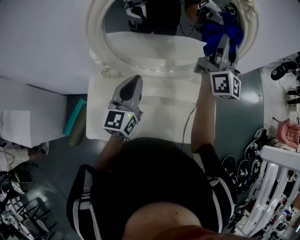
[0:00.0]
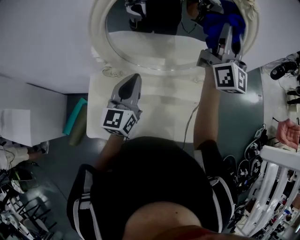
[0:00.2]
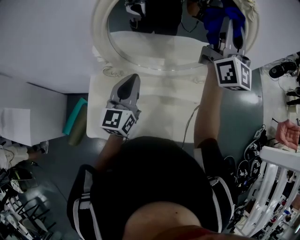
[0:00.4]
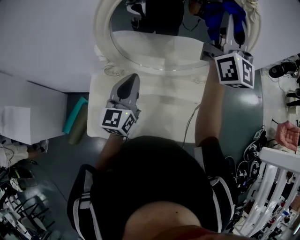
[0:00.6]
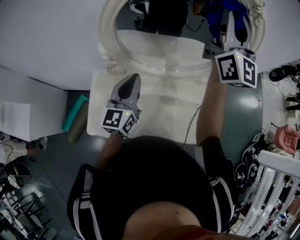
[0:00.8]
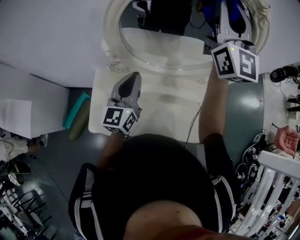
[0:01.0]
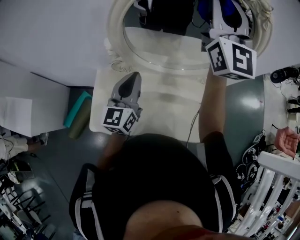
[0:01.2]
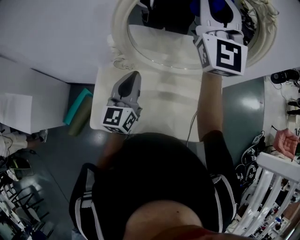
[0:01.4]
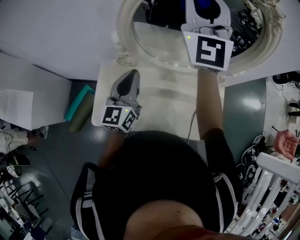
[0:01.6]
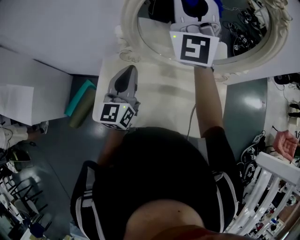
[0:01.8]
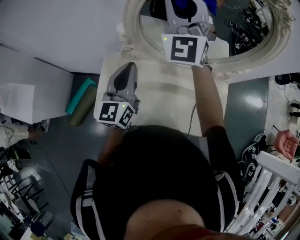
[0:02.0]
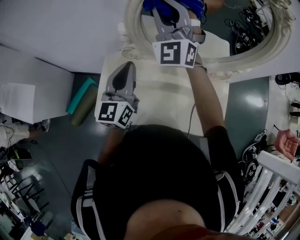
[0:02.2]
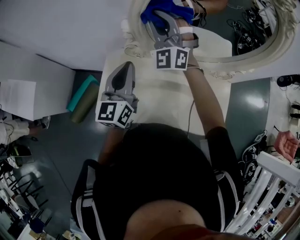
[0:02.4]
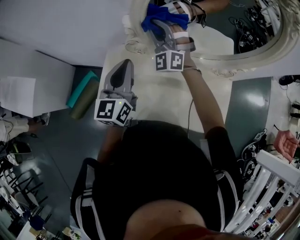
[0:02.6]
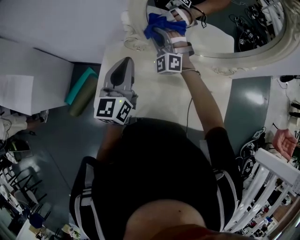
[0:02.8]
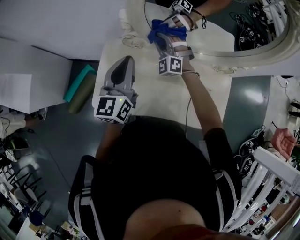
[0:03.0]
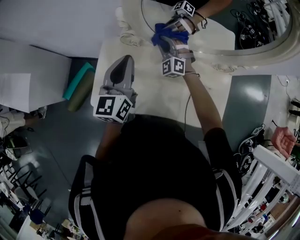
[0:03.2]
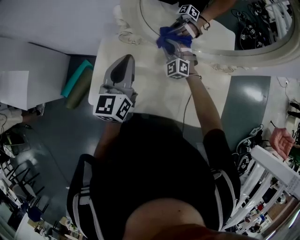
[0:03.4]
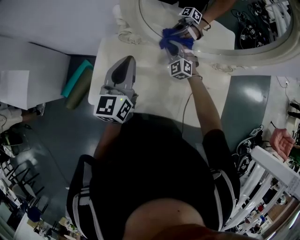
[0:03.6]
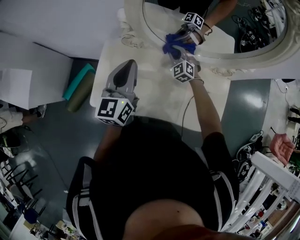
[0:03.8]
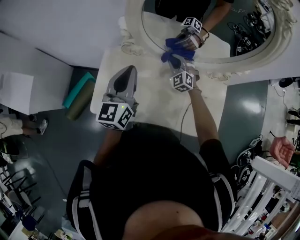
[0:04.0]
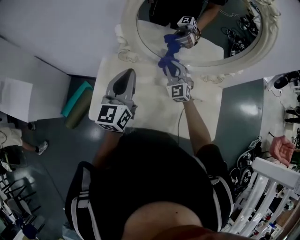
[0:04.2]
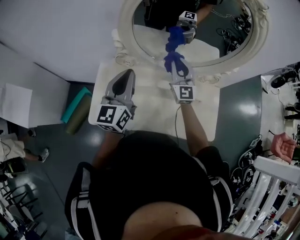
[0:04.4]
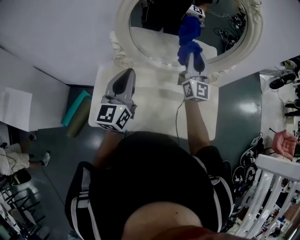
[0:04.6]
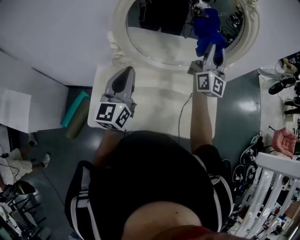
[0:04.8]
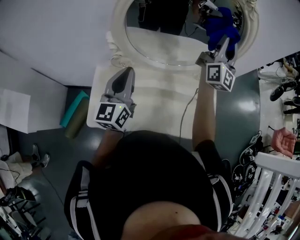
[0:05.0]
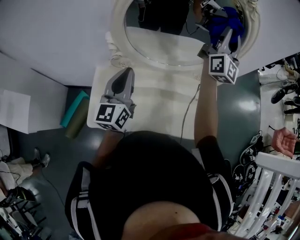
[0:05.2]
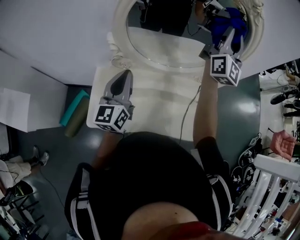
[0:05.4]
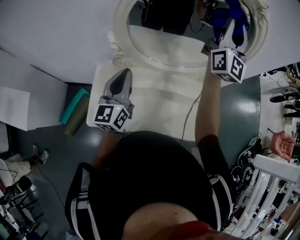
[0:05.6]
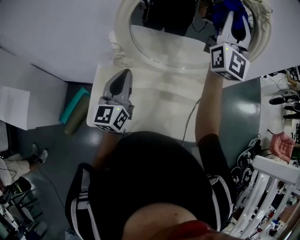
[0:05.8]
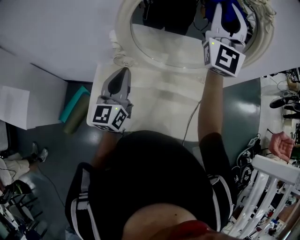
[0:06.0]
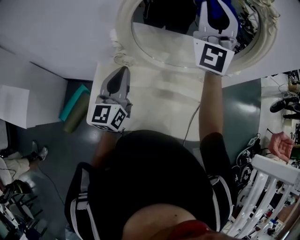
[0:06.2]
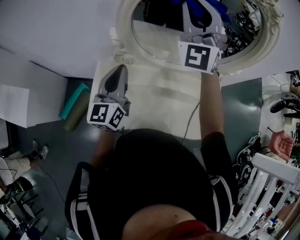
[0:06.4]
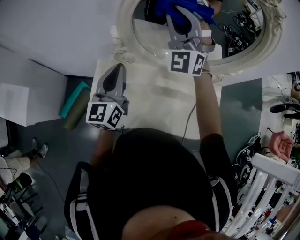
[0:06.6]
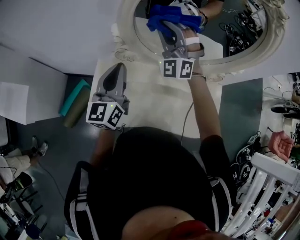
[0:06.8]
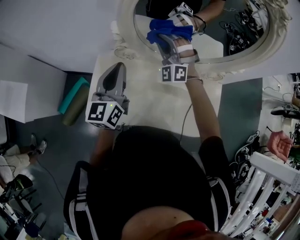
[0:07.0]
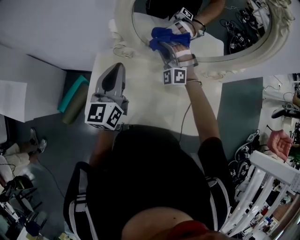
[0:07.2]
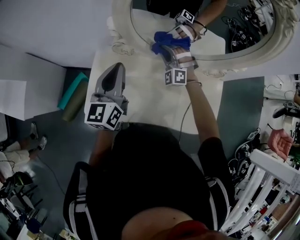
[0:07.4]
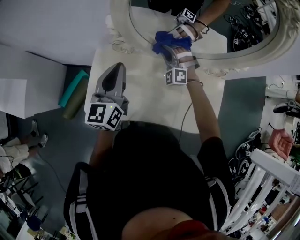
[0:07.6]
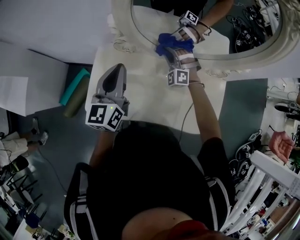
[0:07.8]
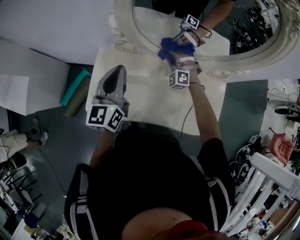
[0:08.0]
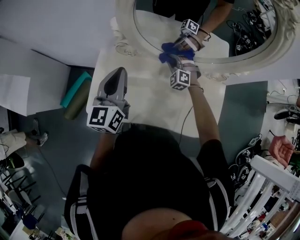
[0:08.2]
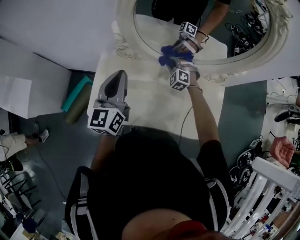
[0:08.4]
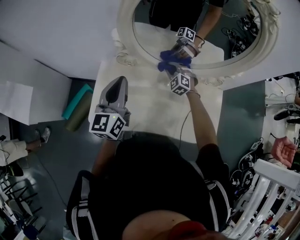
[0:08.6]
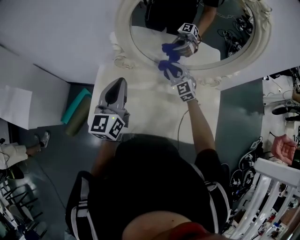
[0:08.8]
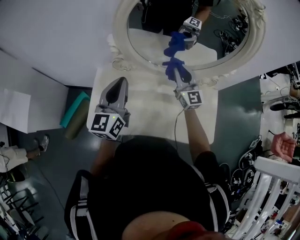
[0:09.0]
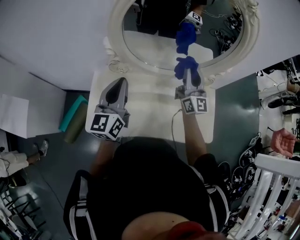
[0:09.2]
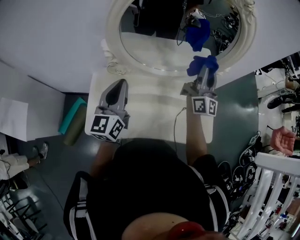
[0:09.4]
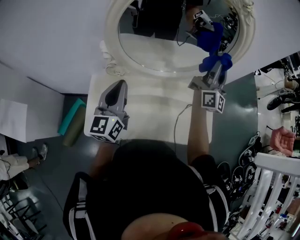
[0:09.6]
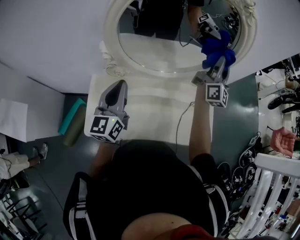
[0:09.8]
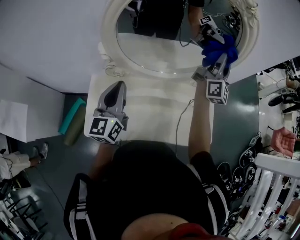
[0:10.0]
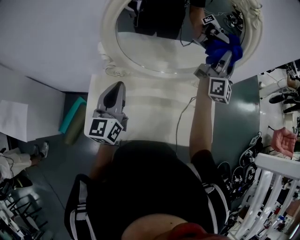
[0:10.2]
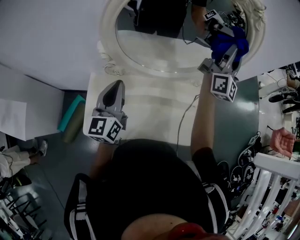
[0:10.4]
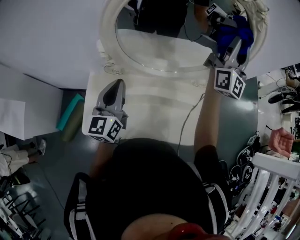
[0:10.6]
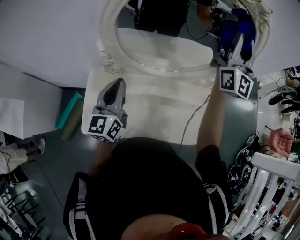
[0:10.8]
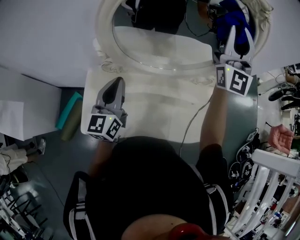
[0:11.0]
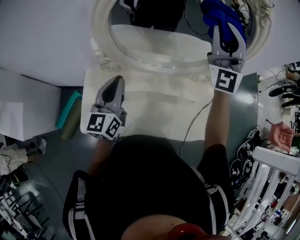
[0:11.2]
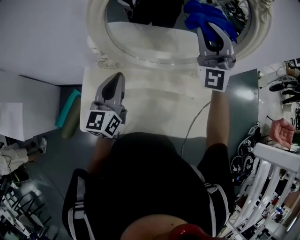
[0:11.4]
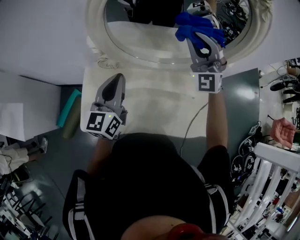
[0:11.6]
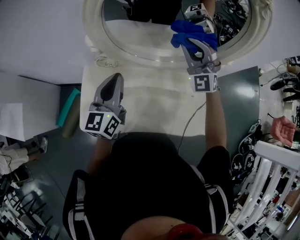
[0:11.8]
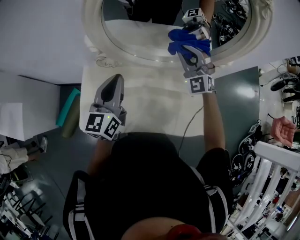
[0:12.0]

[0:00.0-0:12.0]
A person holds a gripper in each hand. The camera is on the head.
0:00.0 to 0:01.6: The left gripper is displaced to the left by some 10 cm. Meanwhile the right gripper is displaced to the left by about 25 cm, and twists some 40 degrees counterclockwise, seen from behind.
0:01.6 to 0:03.0: The right gripper is displaced downward by approximately 40 cm, and tilts its fingers roughly 40 degrees downward; the left gripper moves approximately 5 cm.
0:03.0 to 0:04.4: The right gripper goes approximately 15 cm to the right, upward and backward, and twists some 50 degrees clockwise, seen from behind.
0:04.4 to 0:06.0: The right gripper heads upward, covering some 30 cm, and swivels about 30 degrees.
0:06.0 to 0:07.6: The right gripper shifts some 40 cm downward, and points its fingers about 50 degrees further downward.
0:07.6 to 0:09.0: The right gripper shifts roughly 15 cm upward, to the right and backward, and twists approximately 70 degrees clockwise, seen from behind.
0:09.0 to 0:10.4: The right gripper goes some 30 cm upward and to the right, and tips its fingers upward by approximately 30 degrees.
0:10.4 to 0:12.0: The right gripper moves downward and to the left, some 25 cm, and tilts its fingers approximately 40 degrees downward.

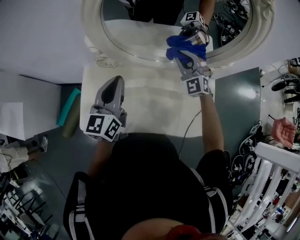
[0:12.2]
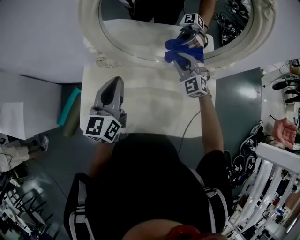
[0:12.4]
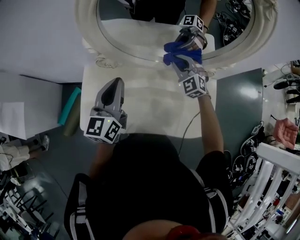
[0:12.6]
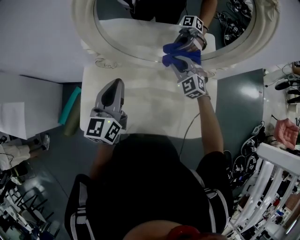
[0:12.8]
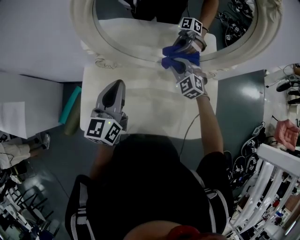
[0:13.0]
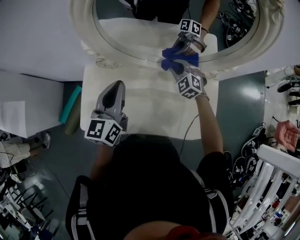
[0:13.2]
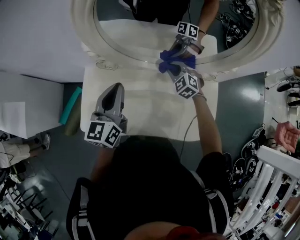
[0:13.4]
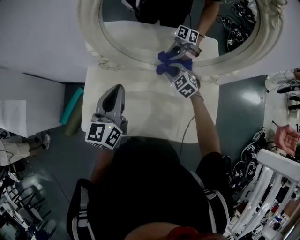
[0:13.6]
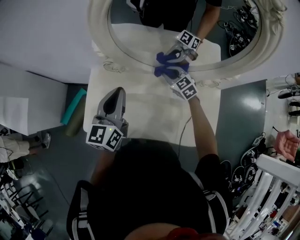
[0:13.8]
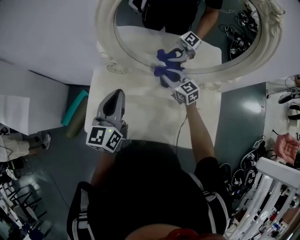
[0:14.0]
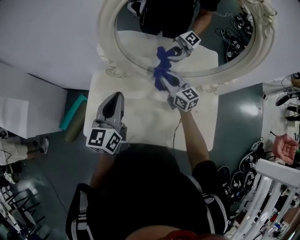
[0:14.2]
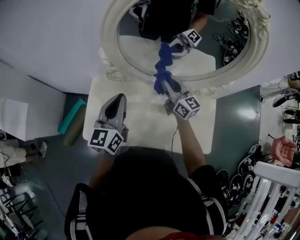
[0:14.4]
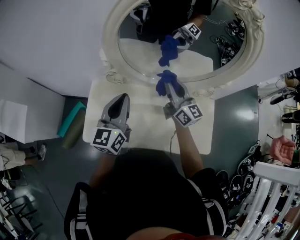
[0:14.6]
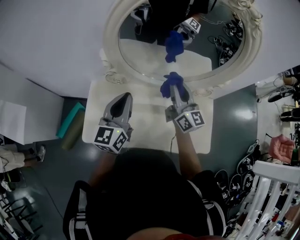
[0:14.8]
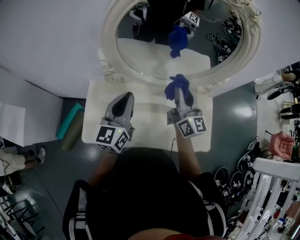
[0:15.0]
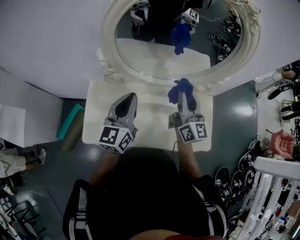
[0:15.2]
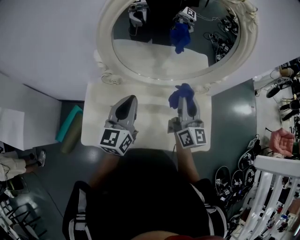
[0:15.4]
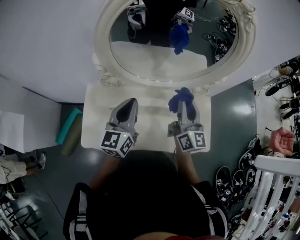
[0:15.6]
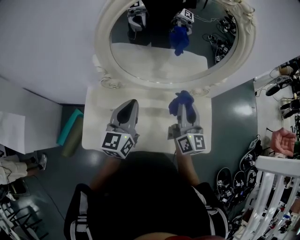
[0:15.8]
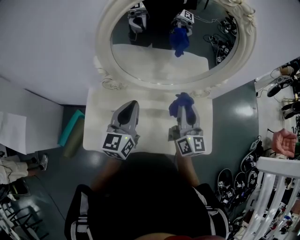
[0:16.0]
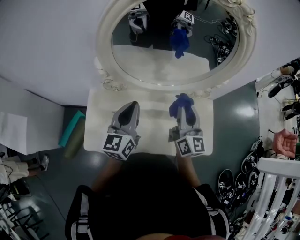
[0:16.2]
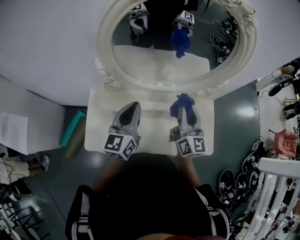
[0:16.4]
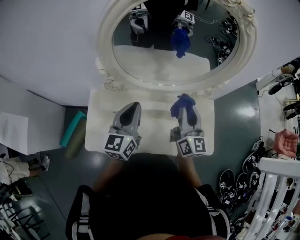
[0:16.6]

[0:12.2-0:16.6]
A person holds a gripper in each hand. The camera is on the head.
0:12.2 to 0:13.6: The right gripper goes about 15 cm downward, and rotates about 40 degrees.
0:13.6 to 0:15.2: The right gripper heads upward and backward, covering some 25 cm, and points its fingers about 50 degrees further upward.
0:15.2 to 0:16.6: There are only small adjustments of the grippers.

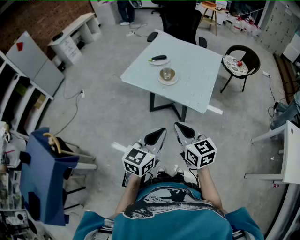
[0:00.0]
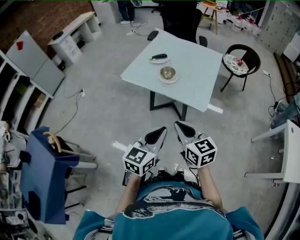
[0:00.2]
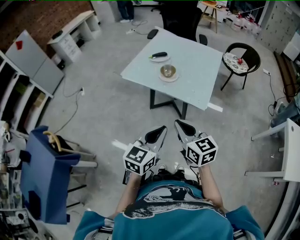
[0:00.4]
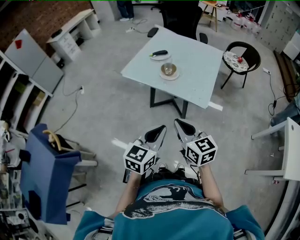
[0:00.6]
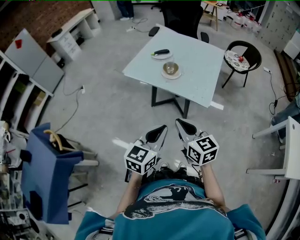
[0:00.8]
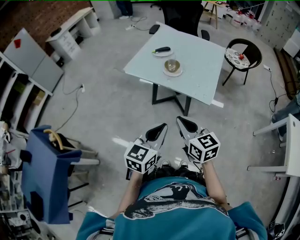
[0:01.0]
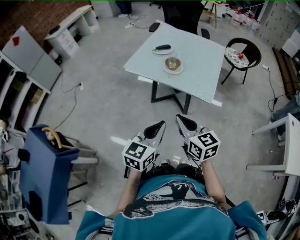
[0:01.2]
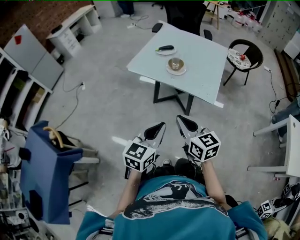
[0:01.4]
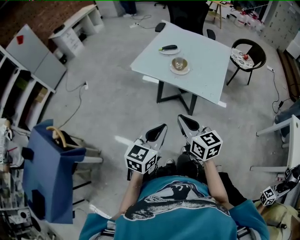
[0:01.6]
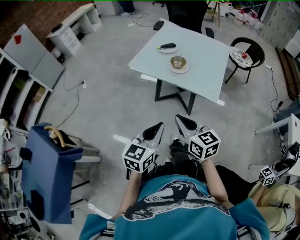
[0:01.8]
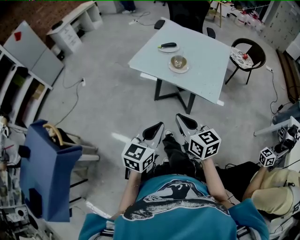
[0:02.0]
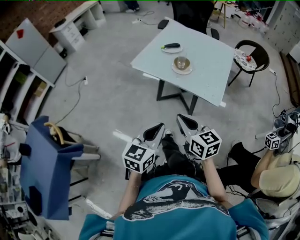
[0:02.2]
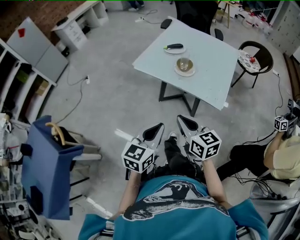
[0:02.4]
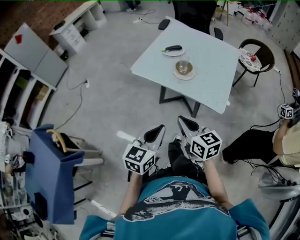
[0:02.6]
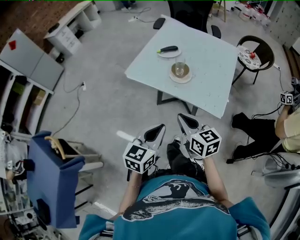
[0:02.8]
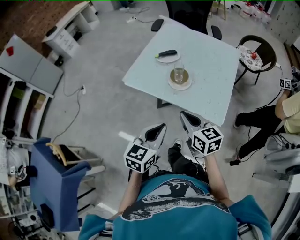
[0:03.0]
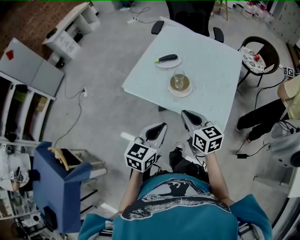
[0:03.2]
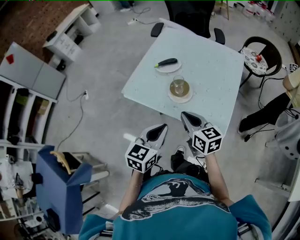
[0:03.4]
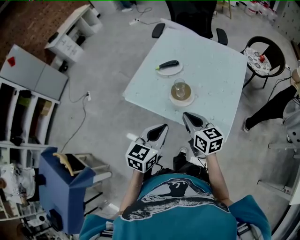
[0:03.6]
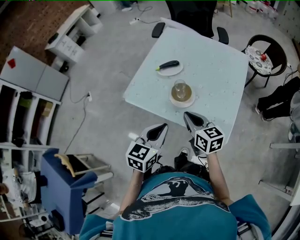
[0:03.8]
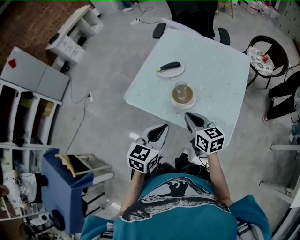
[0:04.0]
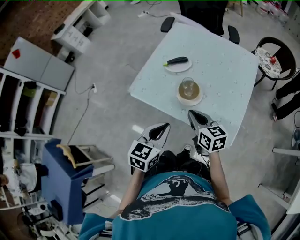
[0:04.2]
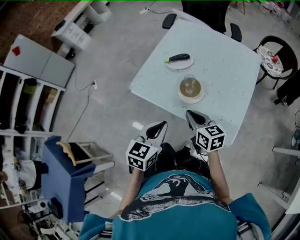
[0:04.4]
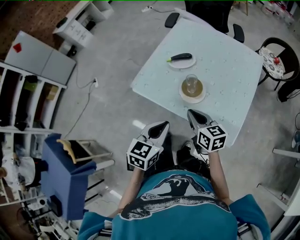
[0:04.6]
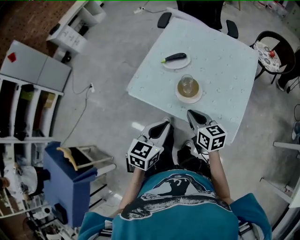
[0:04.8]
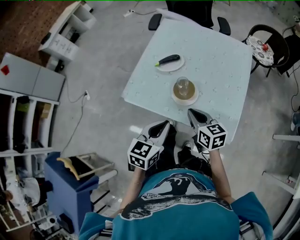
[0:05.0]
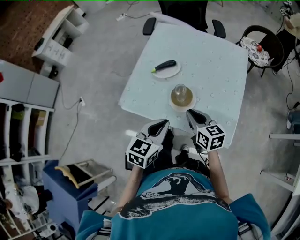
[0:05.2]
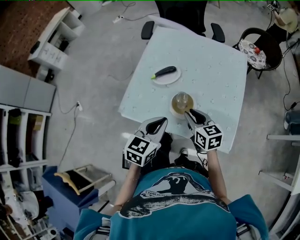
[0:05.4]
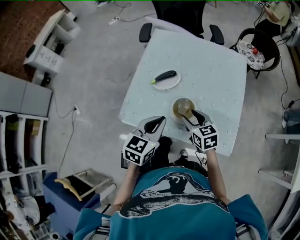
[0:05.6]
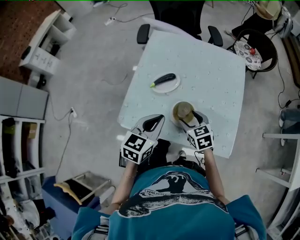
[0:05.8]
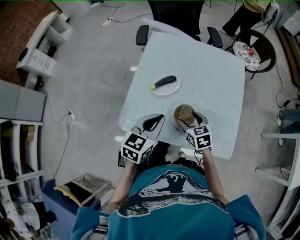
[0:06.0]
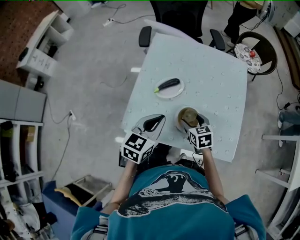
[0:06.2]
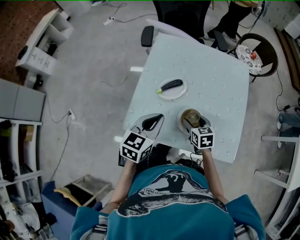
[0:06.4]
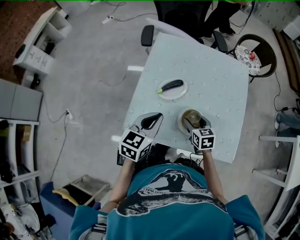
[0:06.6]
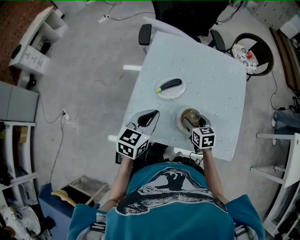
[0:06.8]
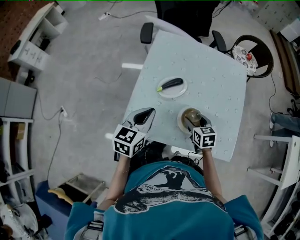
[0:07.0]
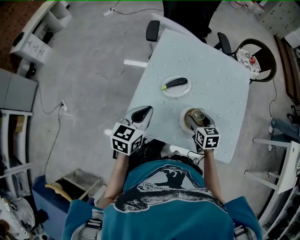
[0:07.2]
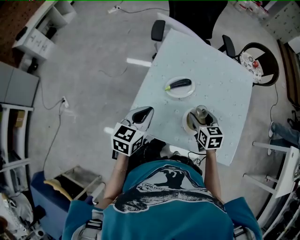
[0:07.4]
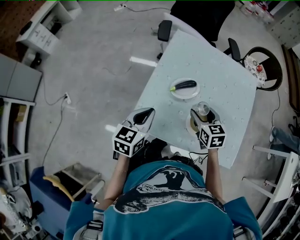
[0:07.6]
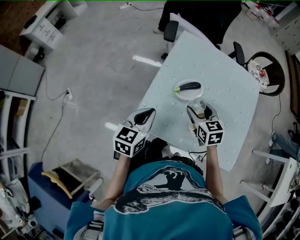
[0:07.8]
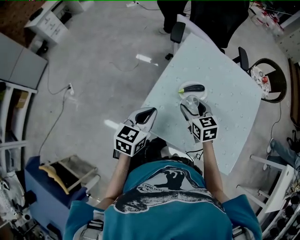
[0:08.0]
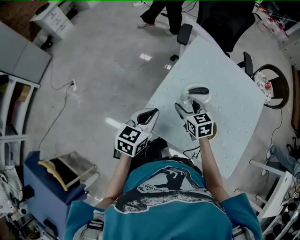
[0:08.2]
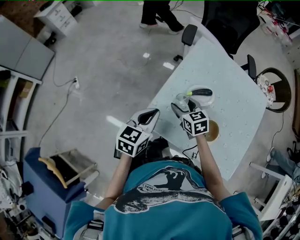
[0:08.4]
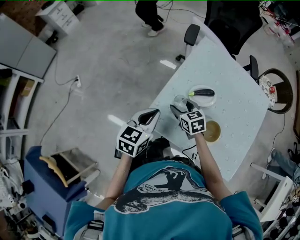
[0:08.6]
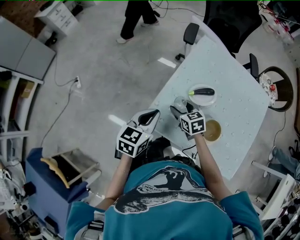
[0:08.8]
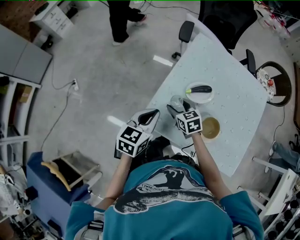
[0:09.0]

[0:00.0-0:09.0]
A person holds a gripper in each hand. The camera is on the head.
0:00.0 to 0:01.6: Both grippers move to the left, roughly 10 cm.
0:01.6 to 0:03.0: Both grippers move forward, some 20 cm.
0:03.0 to 0:04.4: The left gripper moves forward, about 10 cm; the right gripper travels forward and downward by some 15 cm.
0:04.4 to 0:06.0: The left gripper moves forward, some 20 cm, and rotates roughly 20 degrees; the right gripper heads forward and downward, covering some 15 cm, rotates some 30 degrees, and opens its fingers.
0:06.0 to 0:07.6: The left gripper is displaced to the left by roughly 15 cm, while the right gripper travels forward, upward and to the left by approximately 10 cm.
0:07.6 to 0:09.0: The right gripper shifts some 20 cm to the left and downward, and changes its angle by roughly 20 degrees.
